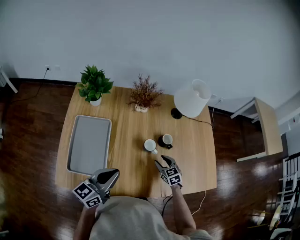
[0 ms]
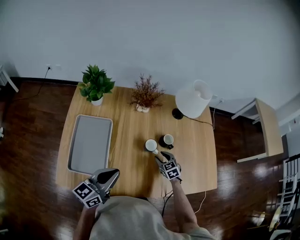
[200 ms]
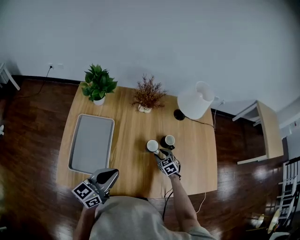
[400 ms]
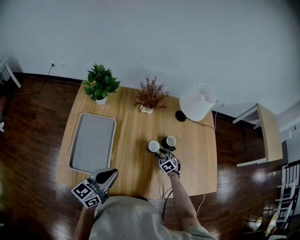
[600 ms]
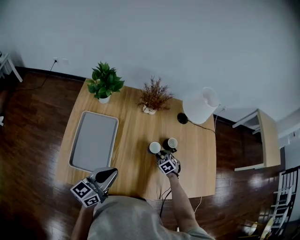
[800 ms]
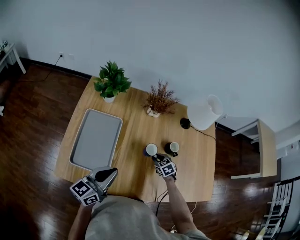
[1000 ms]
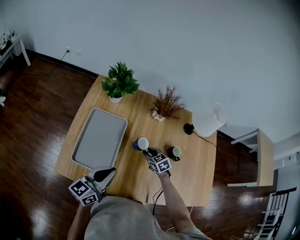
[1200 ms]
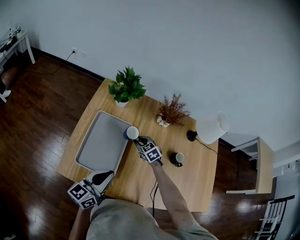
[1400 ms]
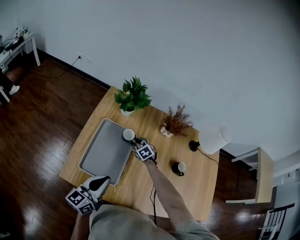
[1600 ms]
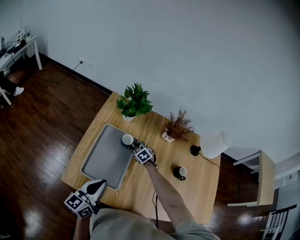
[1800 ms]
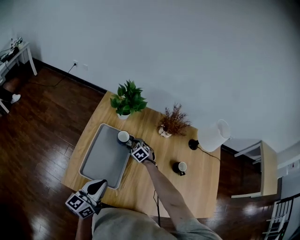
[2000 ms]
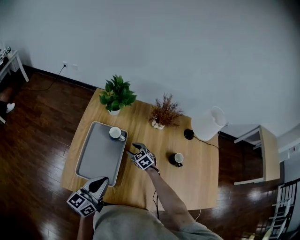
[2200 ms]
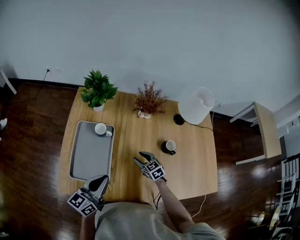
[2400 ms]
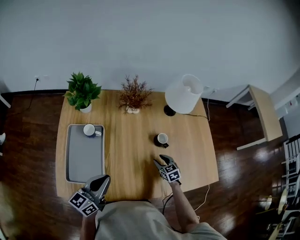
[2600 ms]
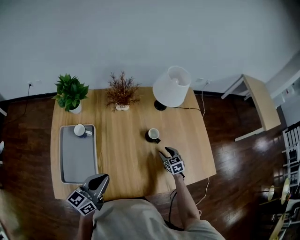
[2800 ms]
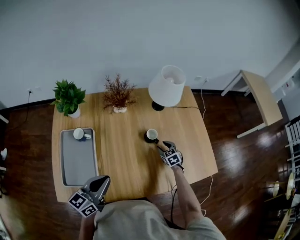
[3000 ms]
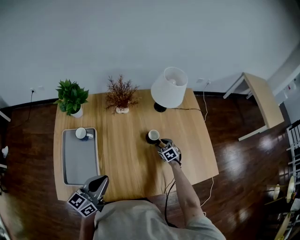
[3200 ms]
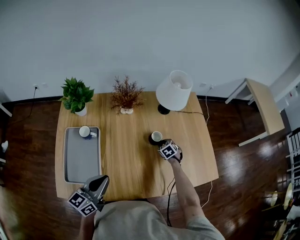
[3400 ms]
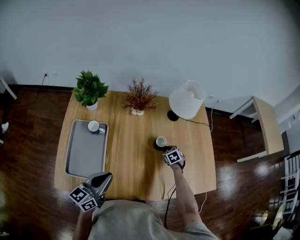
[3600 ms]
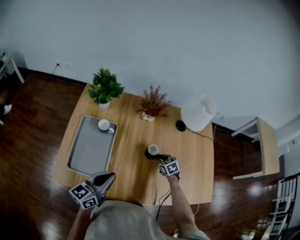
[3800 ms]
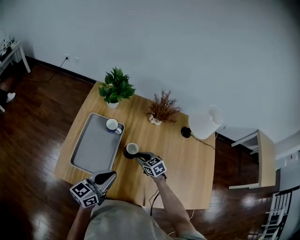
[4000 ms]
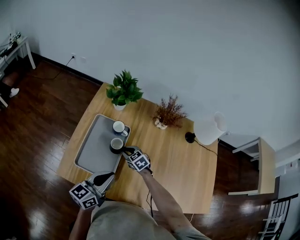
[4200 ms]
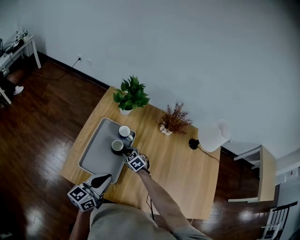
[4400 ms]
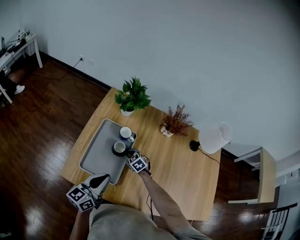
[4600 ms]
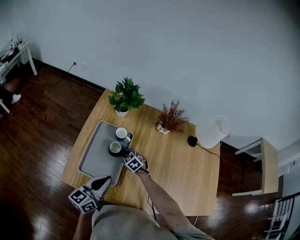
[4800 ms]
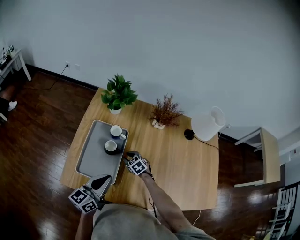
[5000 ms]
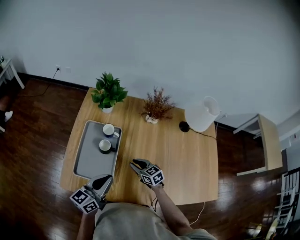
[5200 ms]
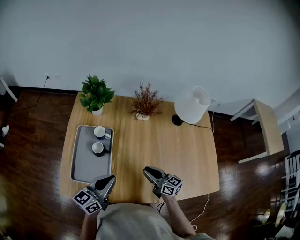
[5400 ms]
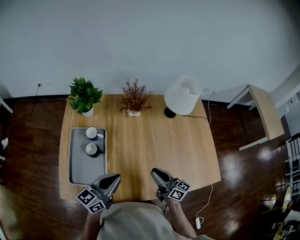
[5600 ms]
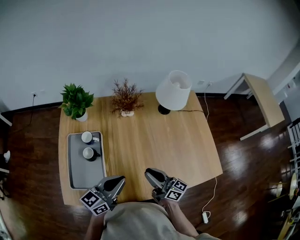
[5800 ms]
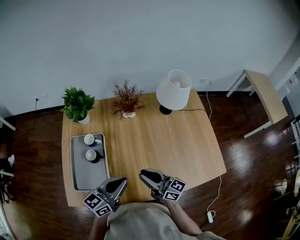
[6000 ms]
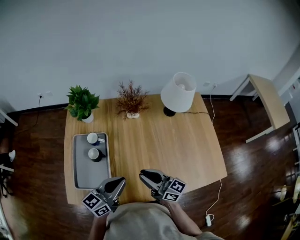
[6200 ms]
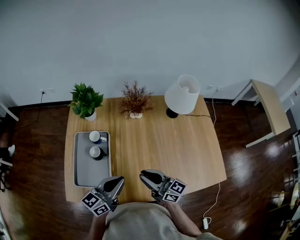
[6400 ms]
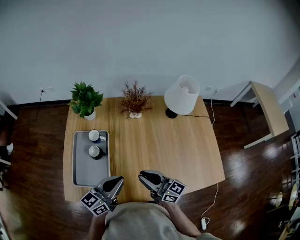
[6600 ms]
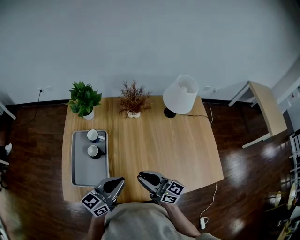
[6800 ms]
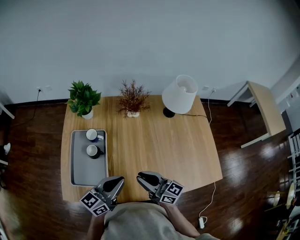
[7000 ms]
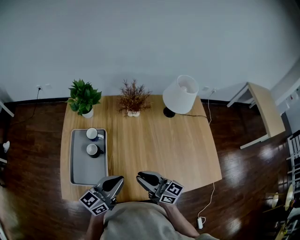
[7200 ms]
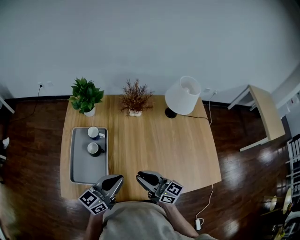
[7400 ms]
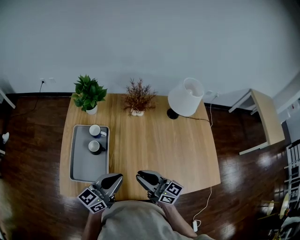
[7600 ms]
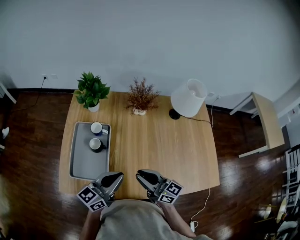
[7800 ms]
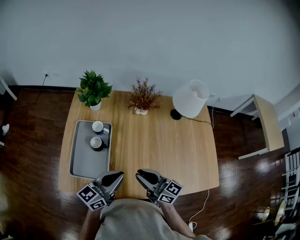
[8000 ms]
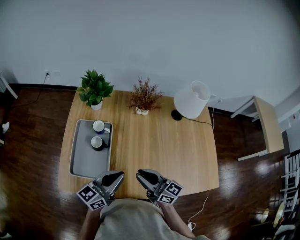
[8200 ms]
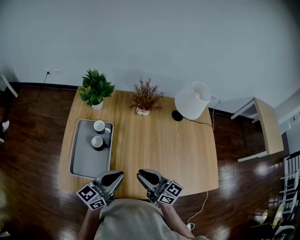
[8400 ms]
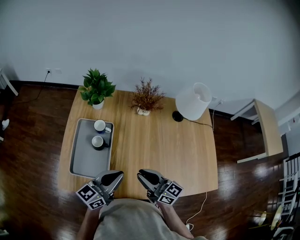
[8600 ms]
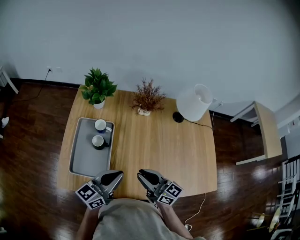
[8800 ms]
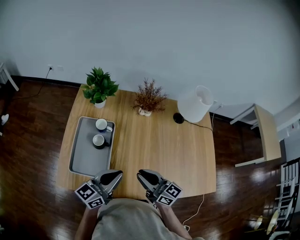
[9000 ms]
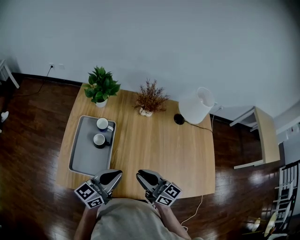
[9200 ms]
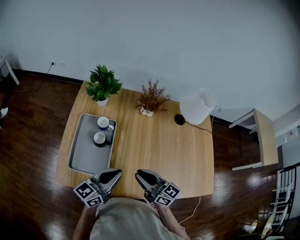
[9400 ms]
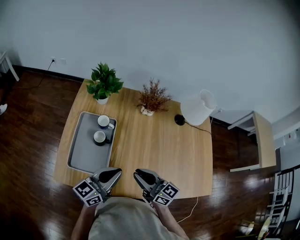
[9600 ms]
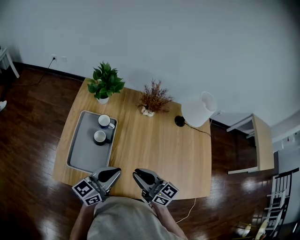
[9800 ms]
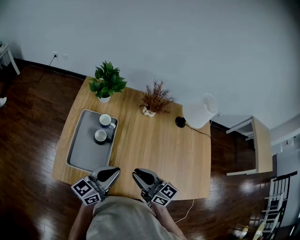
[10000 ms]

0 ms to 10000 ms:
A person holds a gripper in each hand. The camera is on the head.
0 ms to 1400 ms: The right gripper is displaced to the left and forward by about 30 cm, rotates some 30 degrees, and closes; the left gripper heads to the left, covering roughly 10 cm.
1400 ms to 2800 ms: The right gripper changes place by roughly 40 cm, changes its angle by roughly 40 degrees, and opens. Meanwhile the left gripper ends up approximately 10 cm from where it was, and rotates approximately 20 degrees.
2800 ms to 4200 ms: The right gripper moves some 40 cm, changes its angle by some 40 degrees, and closes. Meanwhile the left gripper moves about 10 cm.
4200 ms to 5800 ms: The left gripper ends up approximately 15 cm from where it was, and rotates some 30 degrees. Meanwhile the right gripper moves some 30 cm, and tilts its fingers about 50 degrees upward.
5800 ms to 7200 ms: The right gripper is displaced to the left by about 5 cm.
7200 ms to 8600 ms: The grippers stay close to where they were, moving slightly.
8600 ms to 10000 ms: The grippers move only a little.

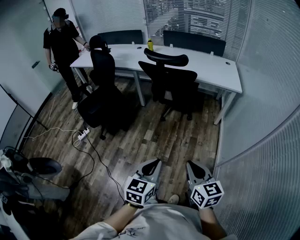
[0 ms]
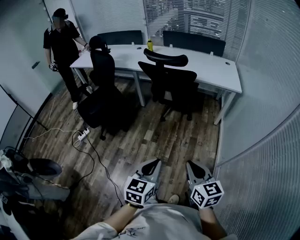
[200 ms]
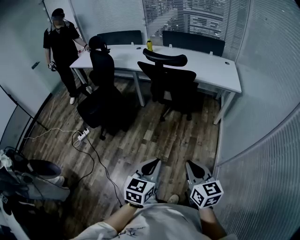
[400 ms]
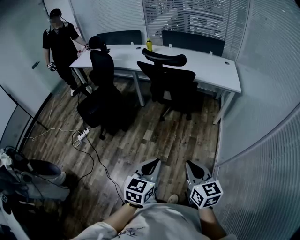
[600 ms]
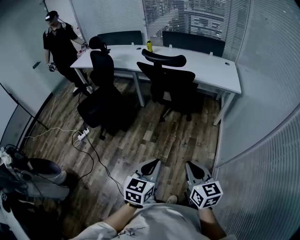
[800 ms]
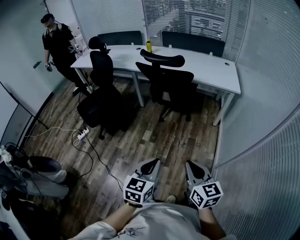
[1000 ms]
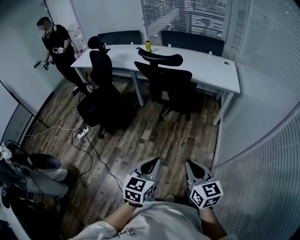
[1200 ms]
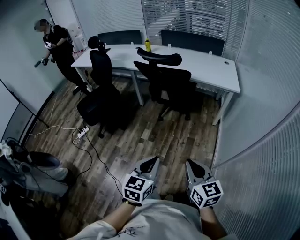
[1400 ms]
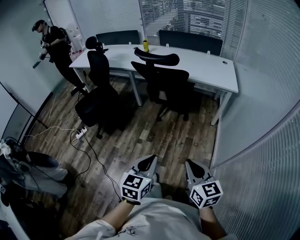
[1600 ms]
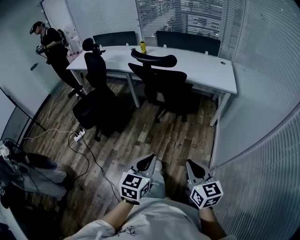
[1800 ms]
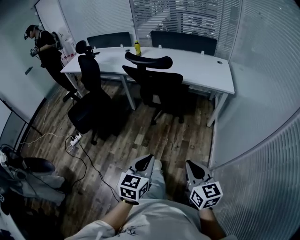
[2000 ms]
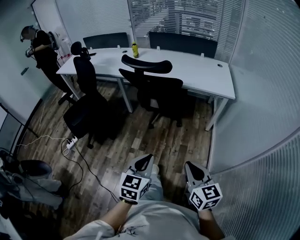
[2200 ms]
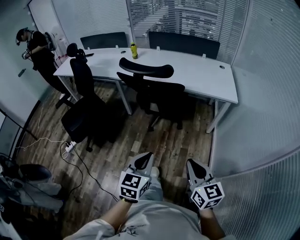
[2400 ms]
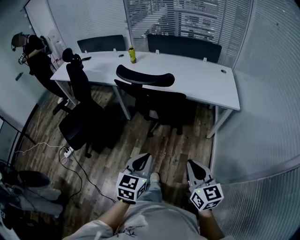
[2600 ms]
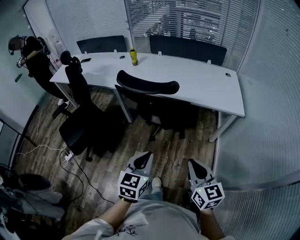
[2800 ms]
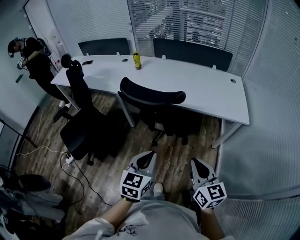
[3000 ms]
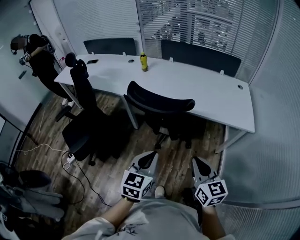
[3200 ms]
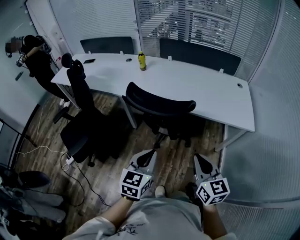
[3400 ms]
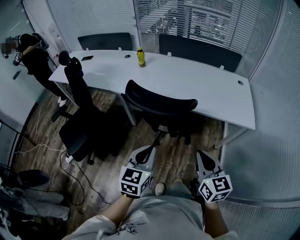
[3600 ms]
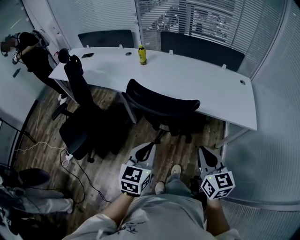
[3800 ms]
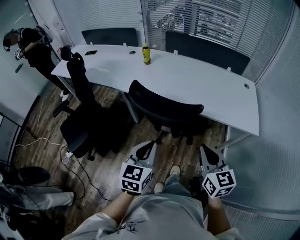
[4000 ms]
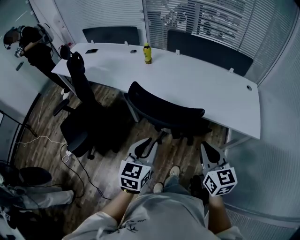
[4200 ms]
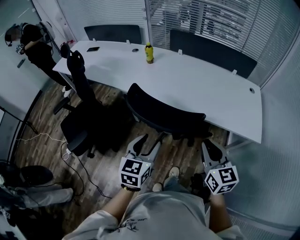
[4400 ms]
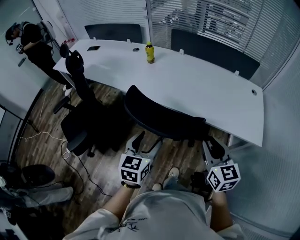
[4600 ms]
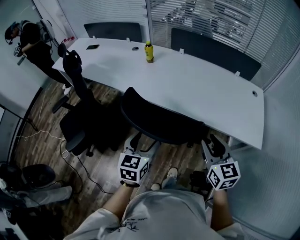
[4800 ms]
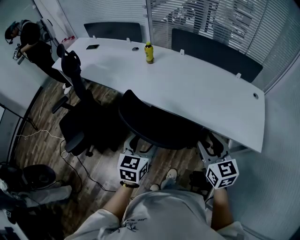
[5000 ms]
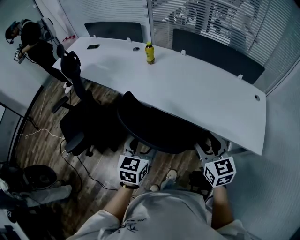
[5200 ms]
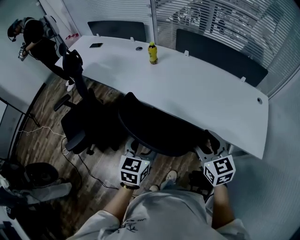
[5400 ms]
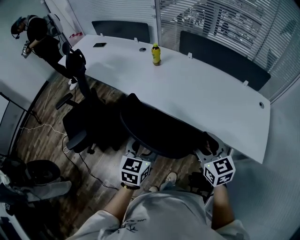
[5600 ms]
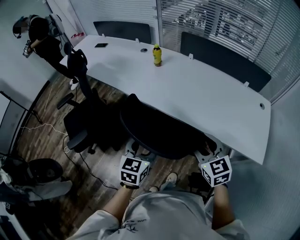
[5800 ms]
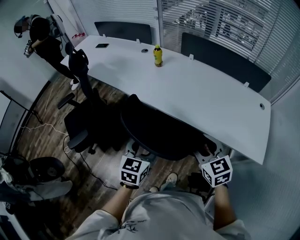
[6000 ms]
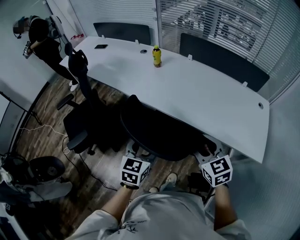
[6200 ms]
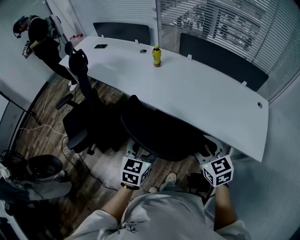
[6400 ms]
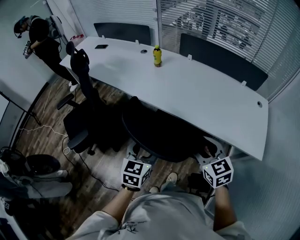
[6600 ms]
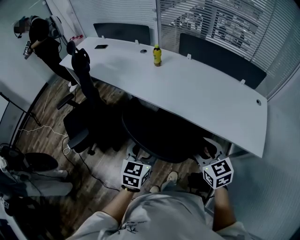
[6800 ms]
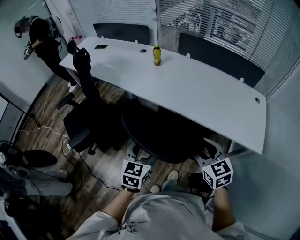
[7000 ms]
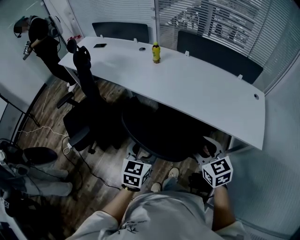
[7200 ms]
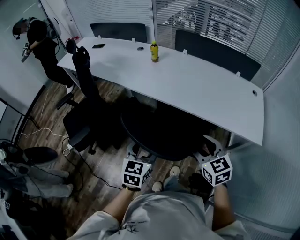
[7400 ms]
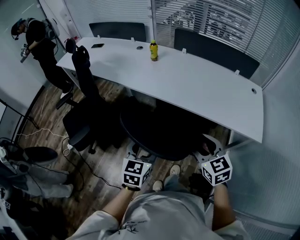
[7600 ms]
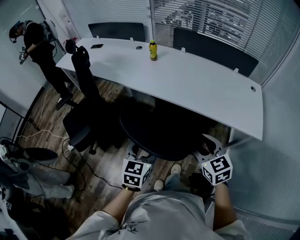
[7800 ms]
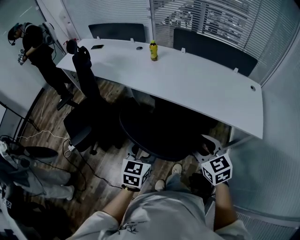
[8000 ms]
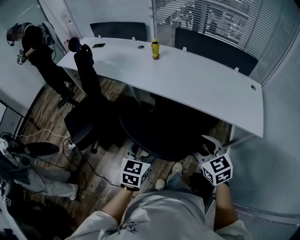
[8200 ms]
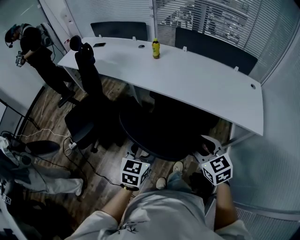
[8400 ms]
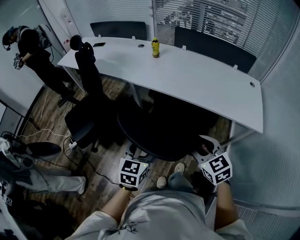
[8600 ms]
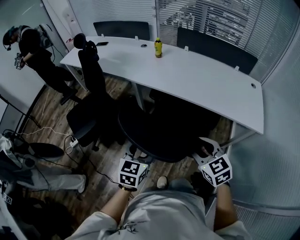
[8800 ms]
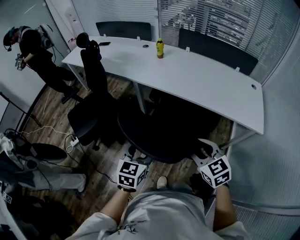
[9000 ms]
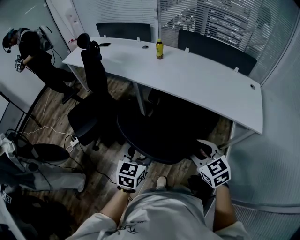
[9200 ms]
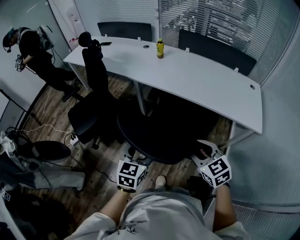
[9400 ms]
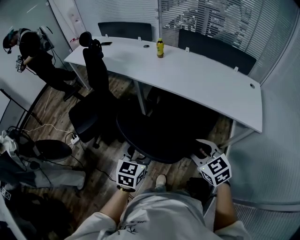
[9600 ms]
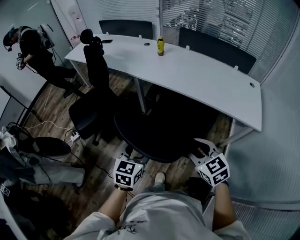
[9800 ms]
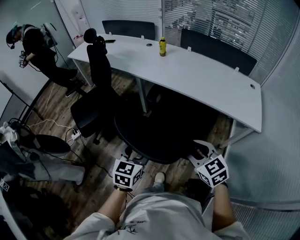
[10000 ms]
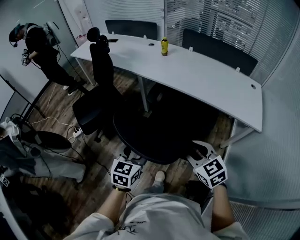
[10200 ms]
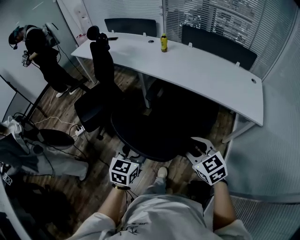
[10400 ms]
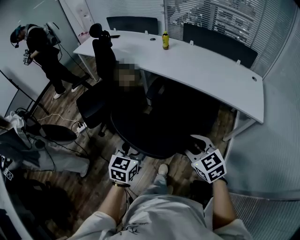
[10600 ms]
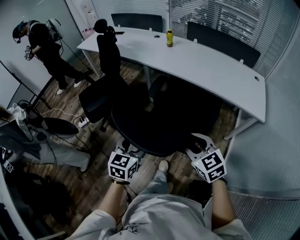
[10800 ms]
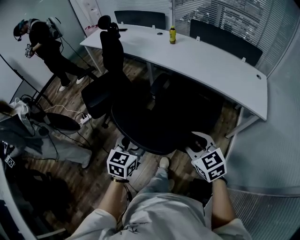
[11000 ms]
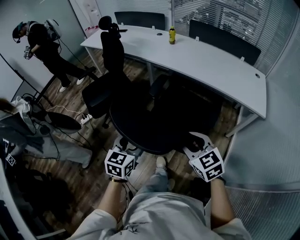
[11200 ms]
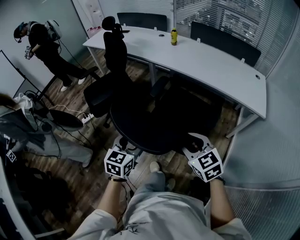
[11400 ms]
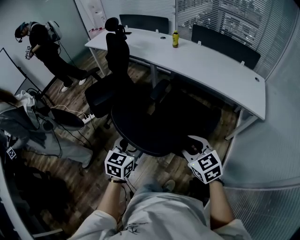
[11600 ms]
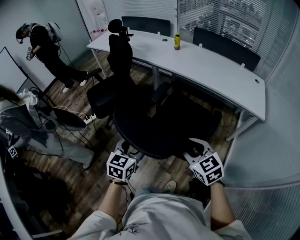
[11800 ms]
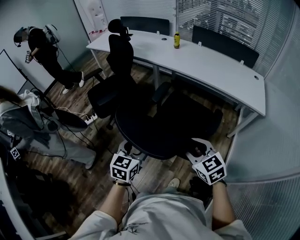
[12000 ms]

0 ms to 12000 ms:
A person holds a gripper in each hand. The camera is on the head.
0 ms to 1600 ms: Both grippers travel together to the right, approximately 10 cm.
1600 ms to 3000 ms: The grippers both shift forward by some 40 cm.
3000 ms to 4400 ms: Both grippers travel together forward, roughly 20 cm. The left gripper opens up.
4400 ms to 6000 ms: Both grippers move forward, roughly 10 cm. The left gripper opens its fingers. Meanwhile the right gripper turns by some 20 degrees, and opens.
6000 ms to 7600 ms: The grippers both shift backward by roughly 10 cm.
7600 ms to 9000 ms: Both grippers travel together backward and to the left, some 10 cm.
9000 ms to 10400 ms: Both grippers move backward, roughly 10 cm.
10400 ms to 12000 ms: Both grippers move backward and to the left, approximately 20 cm.

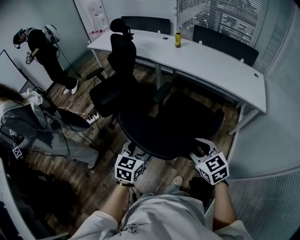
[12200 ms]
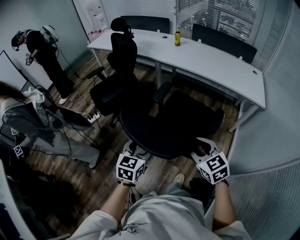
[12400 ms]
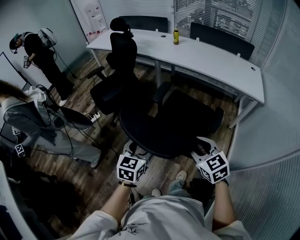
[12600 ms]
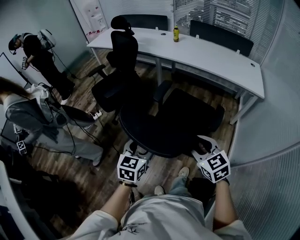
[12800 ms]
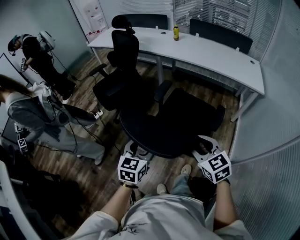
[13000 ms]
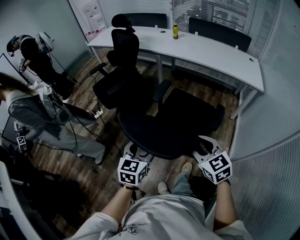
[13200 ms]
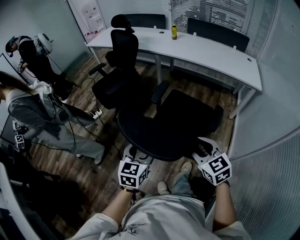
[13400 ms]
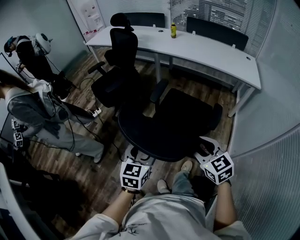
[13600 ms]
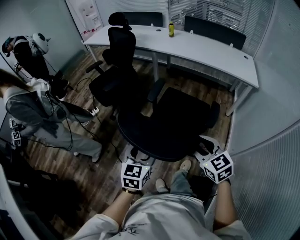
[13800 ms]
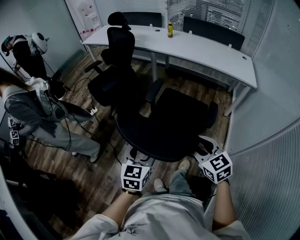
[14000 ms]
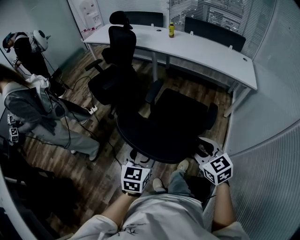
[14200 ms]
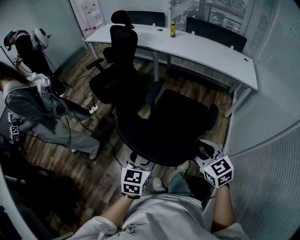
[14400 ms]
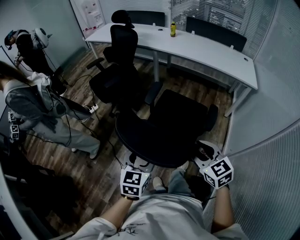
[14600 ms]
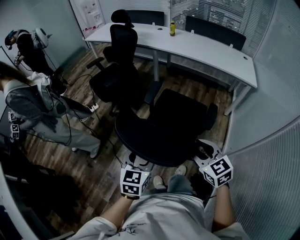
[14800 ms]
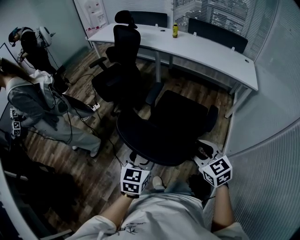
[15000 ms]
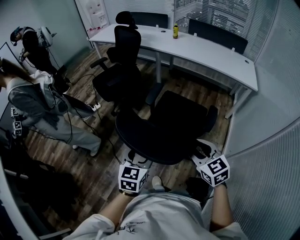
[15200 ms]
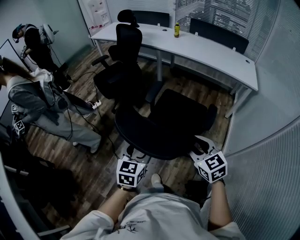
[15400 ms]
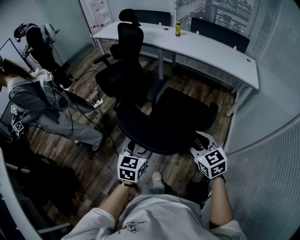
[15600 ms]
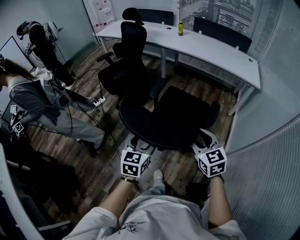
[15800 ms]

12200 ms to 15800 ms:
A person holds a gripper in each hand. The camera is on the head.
12200 ms to 14000 ms: The two grippers go about 20 cm backward.
14000 ms to 15800 ms: The grippers both shift backward by approximately 5 cm.
